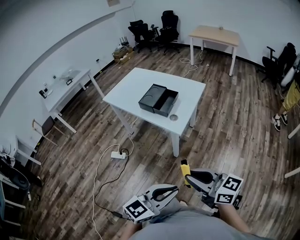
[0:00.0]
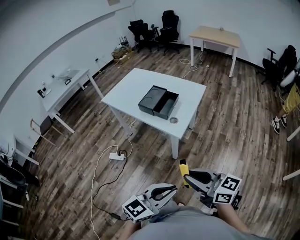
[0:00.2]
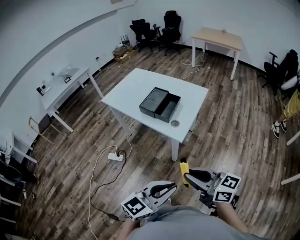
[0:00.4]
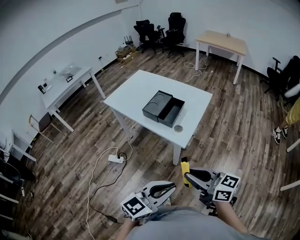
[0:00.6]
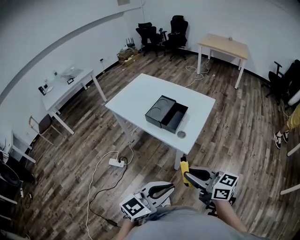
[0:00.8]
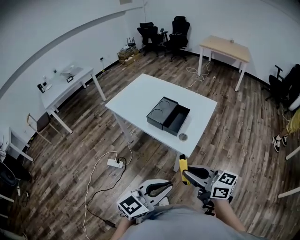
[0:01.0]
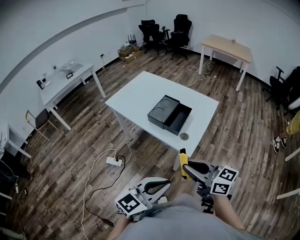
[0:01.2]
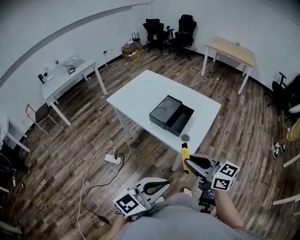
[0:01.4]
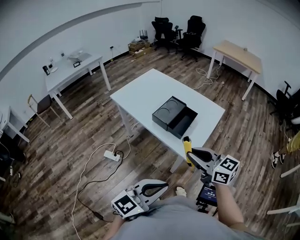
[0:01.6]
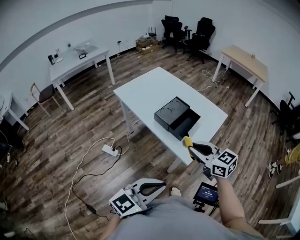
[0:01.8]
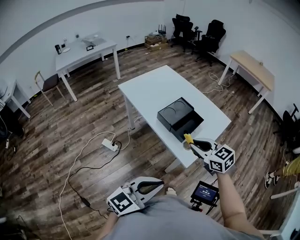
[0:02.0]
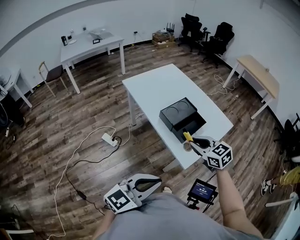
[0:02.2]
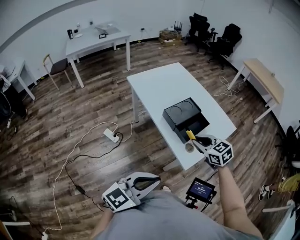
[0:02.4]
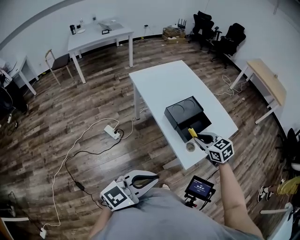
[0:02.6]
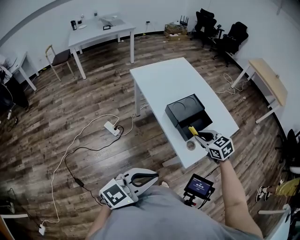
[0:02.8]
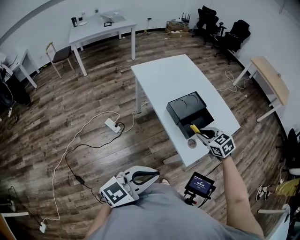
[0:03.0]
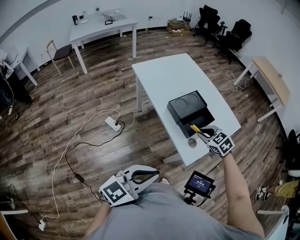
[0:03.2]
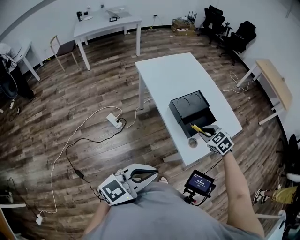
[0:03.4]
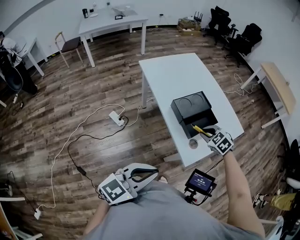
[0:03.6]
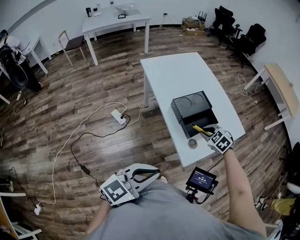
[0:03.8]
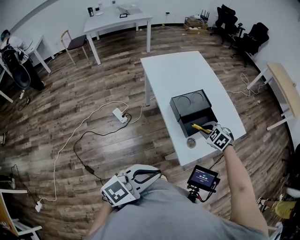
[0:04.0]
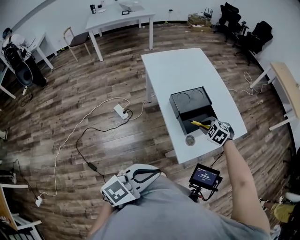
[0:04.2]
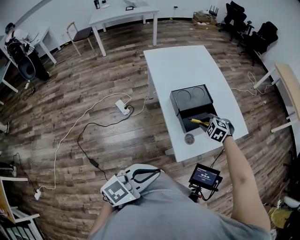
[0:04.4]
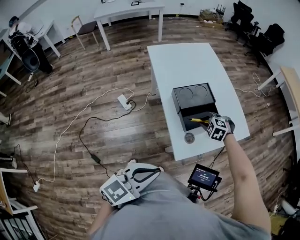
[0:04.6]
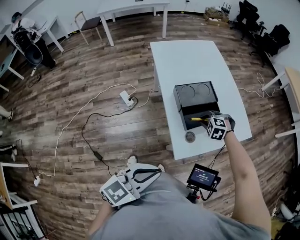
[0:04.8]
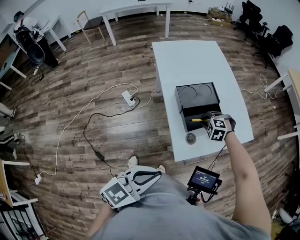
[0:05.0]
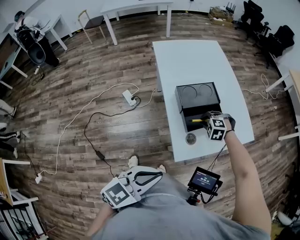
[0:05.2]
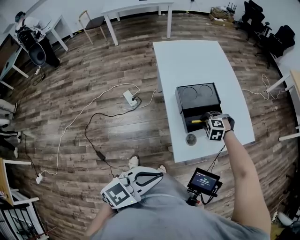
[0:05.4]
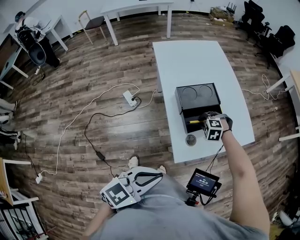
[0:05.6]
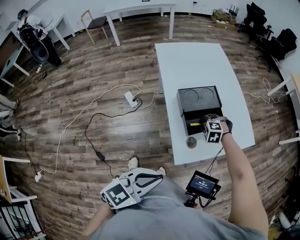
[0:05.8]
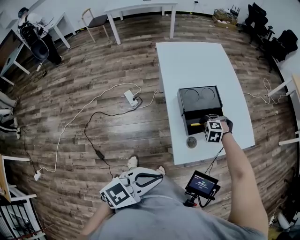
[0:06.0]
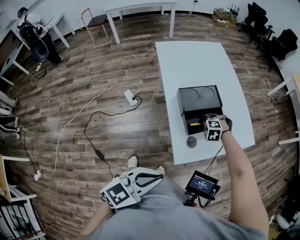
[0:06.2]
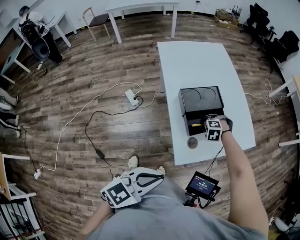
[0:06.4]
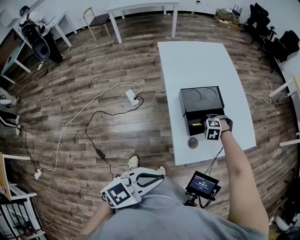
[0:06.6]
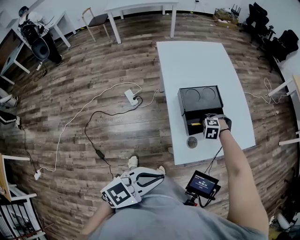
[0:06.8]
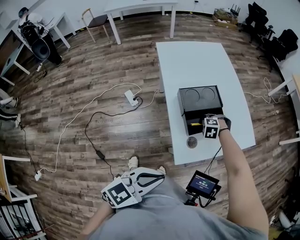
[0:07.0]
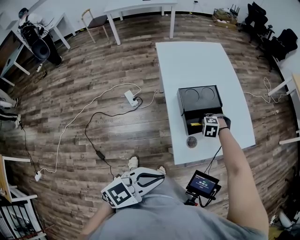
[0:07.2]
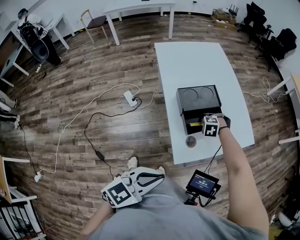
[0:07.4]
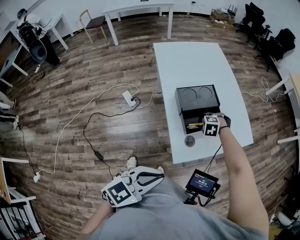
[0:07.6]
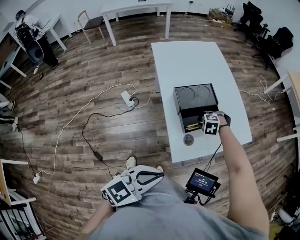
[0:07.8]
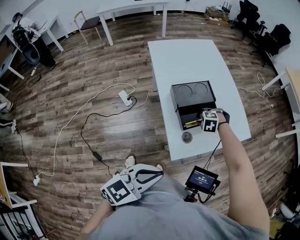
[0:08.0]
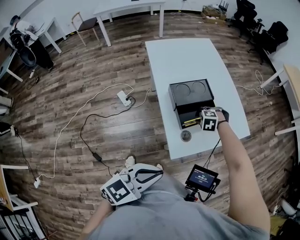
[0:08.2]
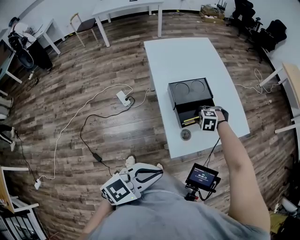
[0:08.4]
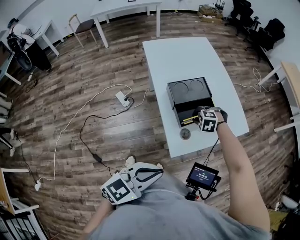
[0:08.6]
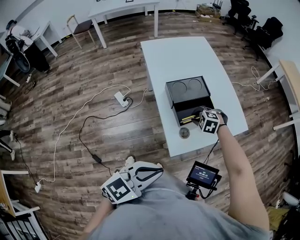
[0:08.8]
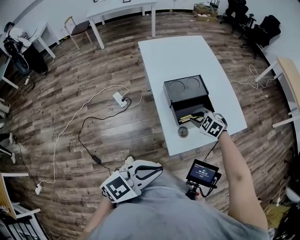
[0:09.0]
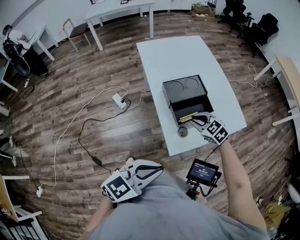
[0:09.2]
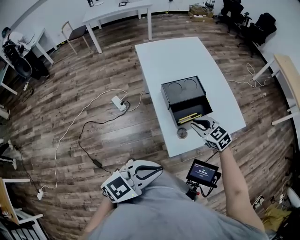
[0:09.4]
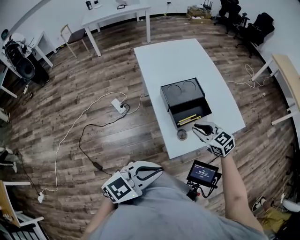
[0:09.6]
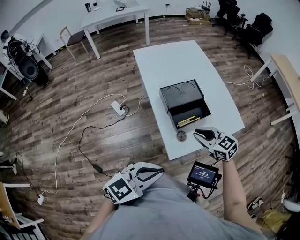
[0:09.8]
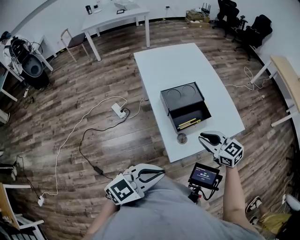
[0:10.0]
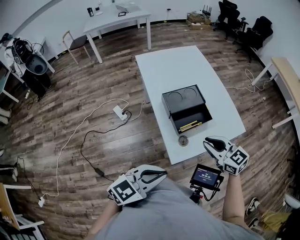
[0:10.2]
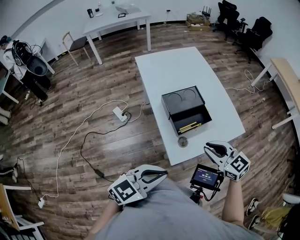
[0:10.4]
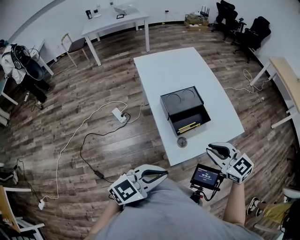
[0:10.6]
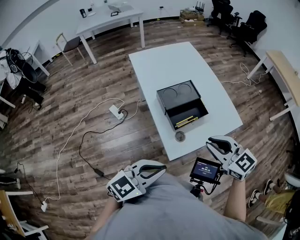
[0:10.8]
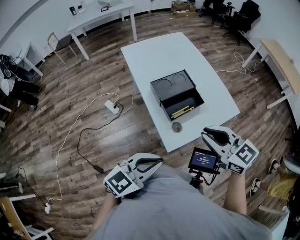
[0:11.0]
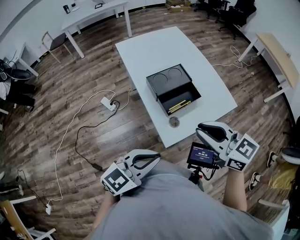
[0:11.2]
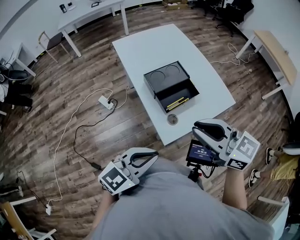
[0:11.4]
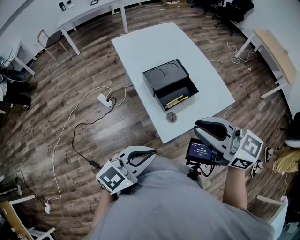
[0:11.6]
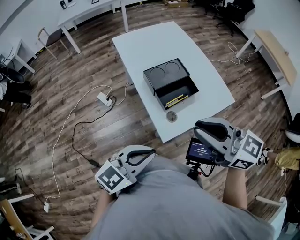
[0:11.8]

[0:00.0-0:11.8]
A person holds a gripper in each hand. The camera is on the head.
0:00.0 to 0:01.4: The left gripper travels forward and to the left by roughly 20 cm. Meanwhile the right gripper is displaced forward by roughly 20 cm.
0:01.4 to 0:03.0: The left gripper moves forward, about 5 cm, and turns by some 20 degrees; the right gripper goes about 25 cm forward and downward, and angles its fingers downward, by about 40 degrees.
0:03.0 to 0:04.4: The left gripper heads to the right, covering some 10 cm. The right gripper shifts some 10 cm downward and forward, and changes its angle by approximately 40 degrees.
0:04.4 to 0:06.0: The left gripper ends up some 5 cm from where it was. The right gripper heads downward, covering some 10 cm, and swivels some 30 degrees.
0:06.0 to 0:07.4: The grippers move only a little.
0:07.4 to 0:08.8: The right gripper shifts roughly 5 cm upward.
0:08.8 to 0:10.4: The right gripper shifts about 20 cm upward and backward, and tilts its fingers some 50 degrees upward.
0:10.4 to 0:11.8: The right gripper is displaced upward by some 15 cm, and rotates roughly 20 degrees.

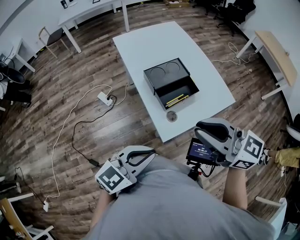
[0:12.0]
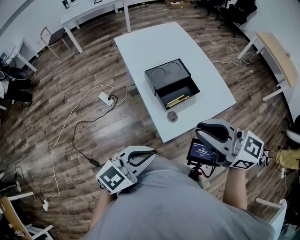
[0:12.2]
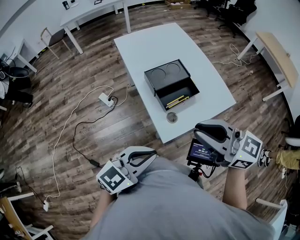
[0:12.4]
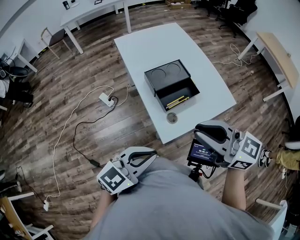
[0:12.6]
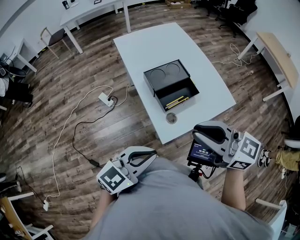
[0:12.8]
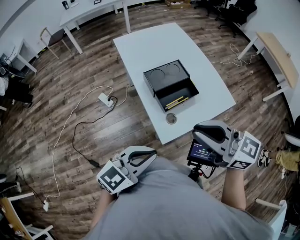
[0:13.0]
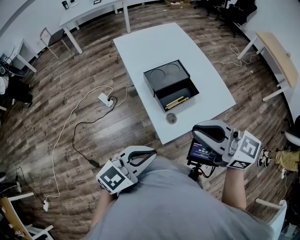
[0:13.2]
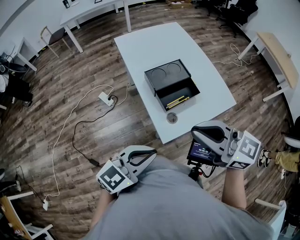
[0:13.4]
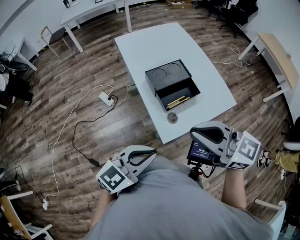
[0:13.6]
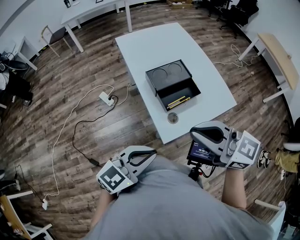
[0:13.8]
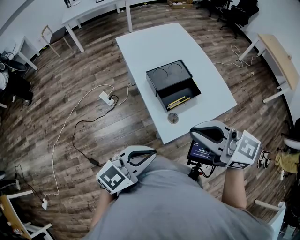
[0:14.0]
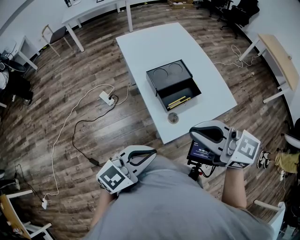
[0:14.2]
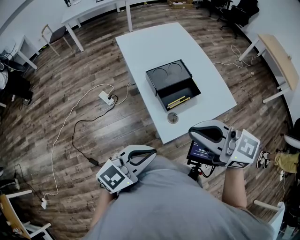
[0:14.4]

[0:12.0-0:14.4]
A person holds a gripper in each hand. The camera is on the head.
0:12.0 to 0:14.4: There are only small adjustments of the grippers.

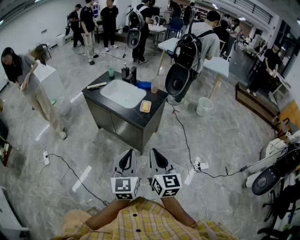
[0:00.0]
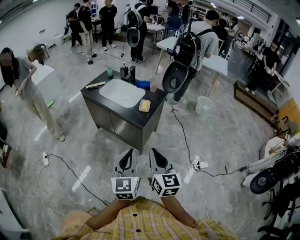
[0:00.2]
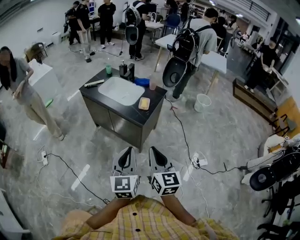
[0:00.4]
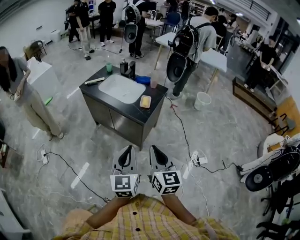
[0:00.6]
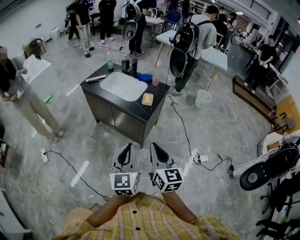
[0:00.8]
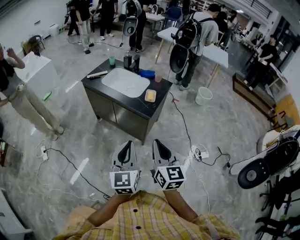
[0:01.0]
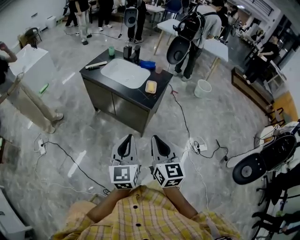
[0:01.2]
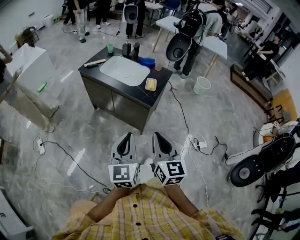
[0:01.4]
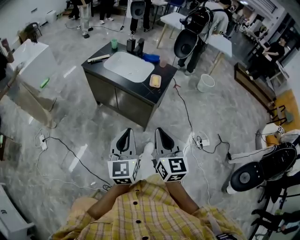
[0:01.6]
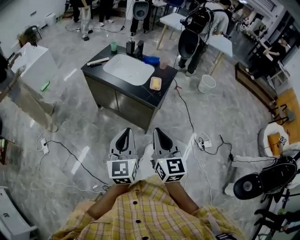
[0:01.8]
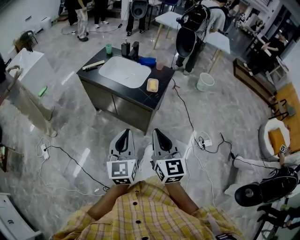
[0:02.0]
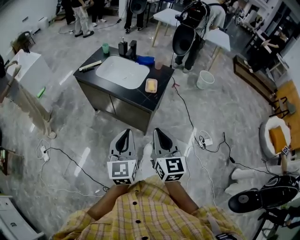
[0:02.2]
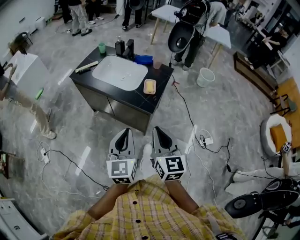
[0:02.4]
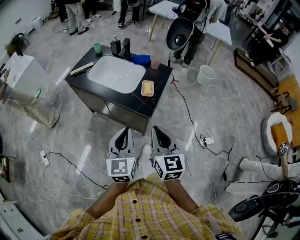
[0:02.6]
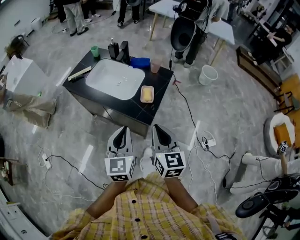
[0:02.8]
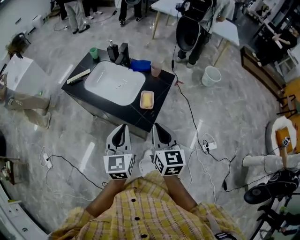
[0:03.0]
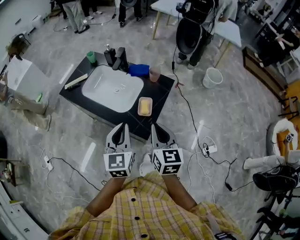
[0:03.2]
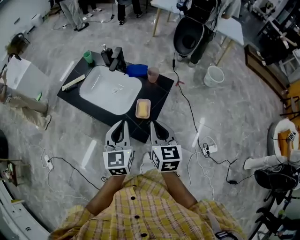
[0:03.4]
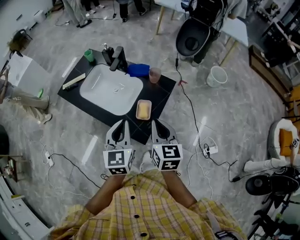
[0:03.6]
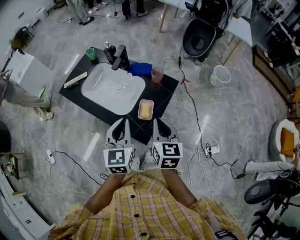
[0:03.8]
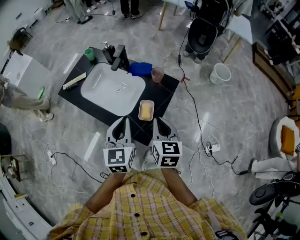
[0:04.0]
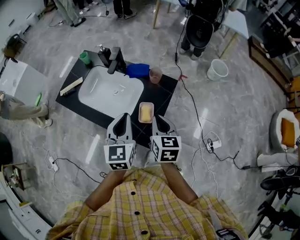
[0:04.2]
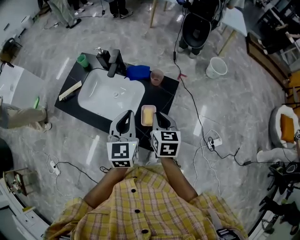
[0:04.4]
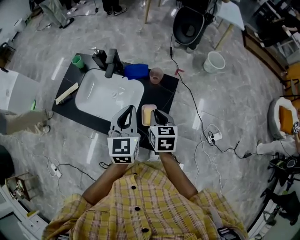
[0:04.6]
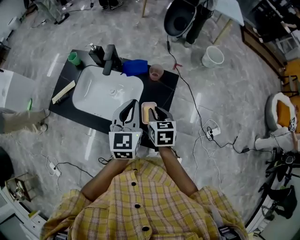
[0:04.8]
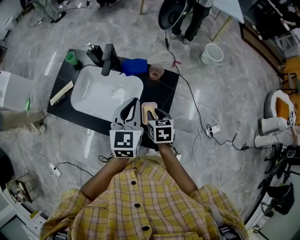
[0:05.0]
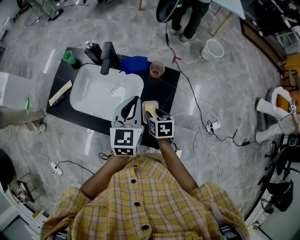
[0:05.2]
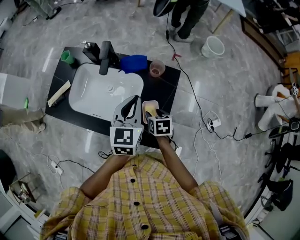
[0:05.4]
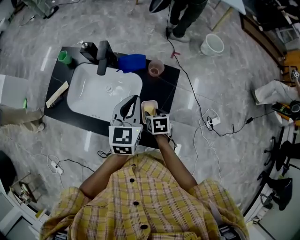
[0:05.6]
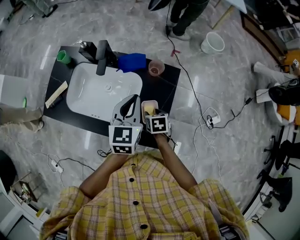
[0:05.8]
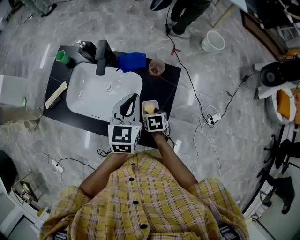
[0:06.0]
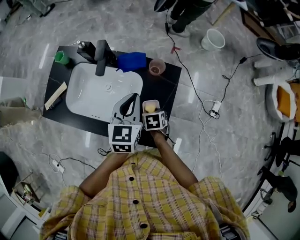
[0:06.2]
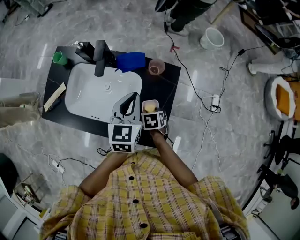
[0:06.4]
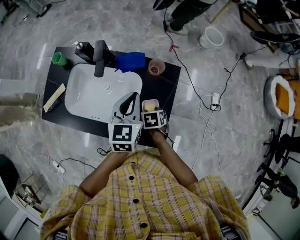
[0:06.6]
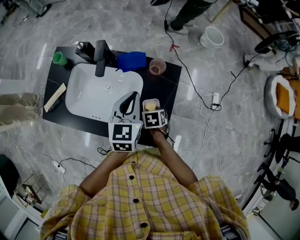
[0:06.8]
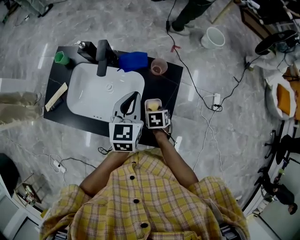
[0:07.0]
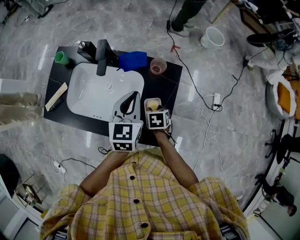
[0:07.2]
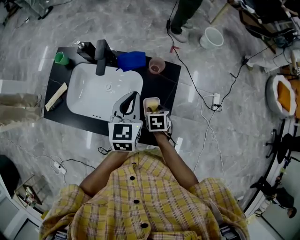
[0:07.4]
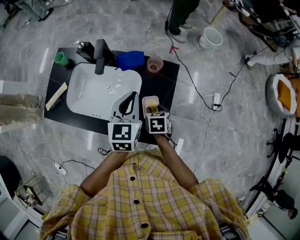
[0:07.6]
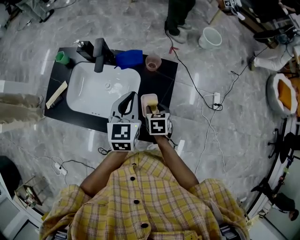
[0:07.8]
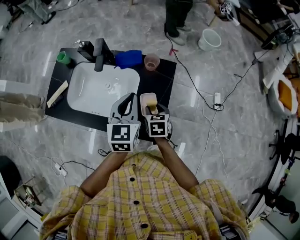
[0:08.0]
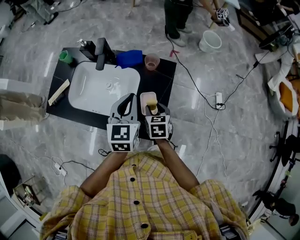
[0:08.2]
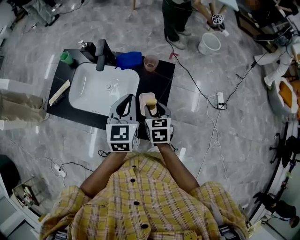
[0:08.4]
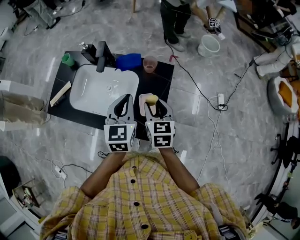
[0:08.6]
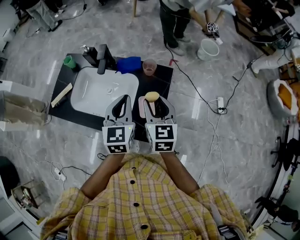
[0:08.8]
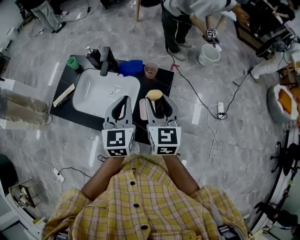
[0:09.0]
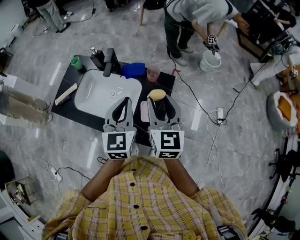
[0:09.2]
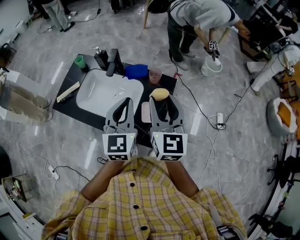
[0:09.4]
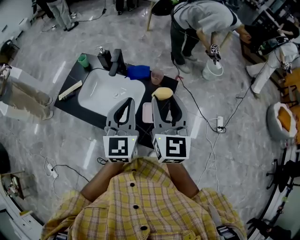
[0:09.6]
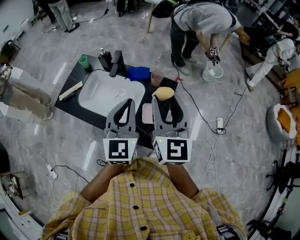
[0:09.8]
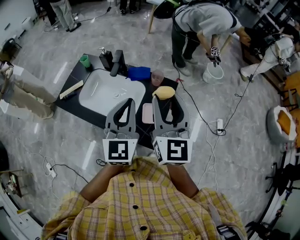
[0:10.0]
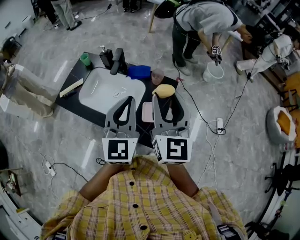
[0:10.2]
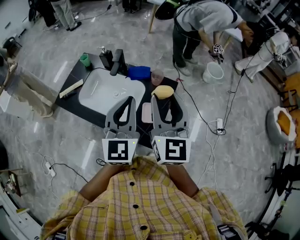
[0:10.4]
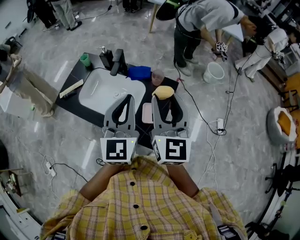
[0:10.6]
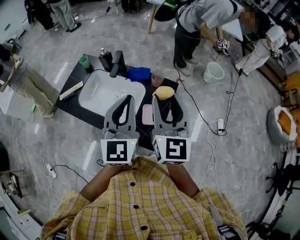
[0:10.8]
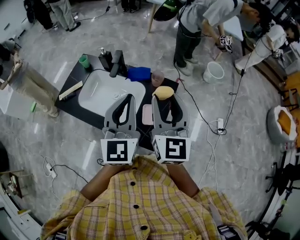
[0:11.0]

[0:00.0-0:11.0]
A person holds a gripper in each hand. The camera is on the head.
0:00.0 to 0:01.6: The two grippers go about 10 cm to the left.
0:01.6 to 0:03.2: The grippers both shift forward by some 35 cm.
0:03.2 to 0:04.8: The right gripper shifts about 25 cm forward and downward, and rotates about 30 degrees, while the left gripper heads forward, covering about 25 cm.
0:04.8 to 0:06.2: The left gripper travels forward and downward by about 10 cm. The right gripper heads downward, covering some 15 cm, changes its angle by roughly 30 degrees, and opens up.
0:06.2 to 0:07.8: The right gripper moves upward, approximately 5 cm.
0:07.8 to 0:09.4: The right gripper travels upward by about 30 cm, and tilts its fingers about 50 degrees upward. Meanwhile the left gripper goes approximately 15 cm upward and backward.
0:09.4 to 0:11.0: The left gripper moves upward, roughly 5 cm.
